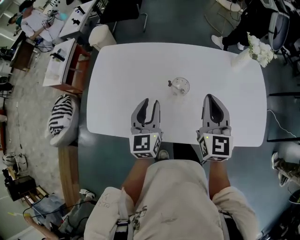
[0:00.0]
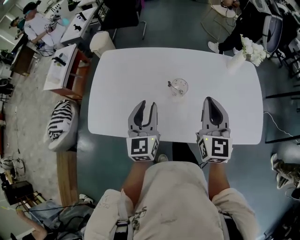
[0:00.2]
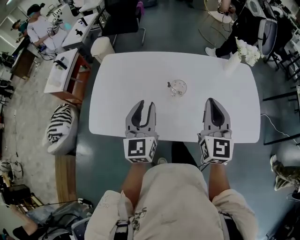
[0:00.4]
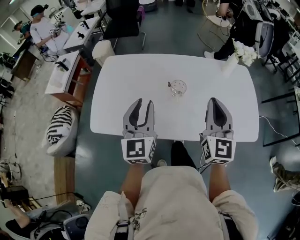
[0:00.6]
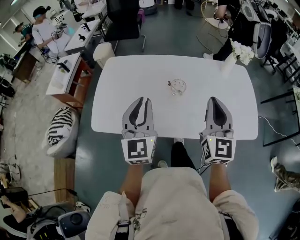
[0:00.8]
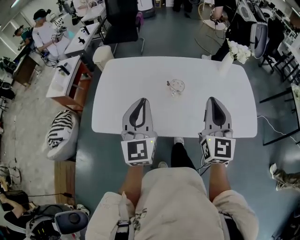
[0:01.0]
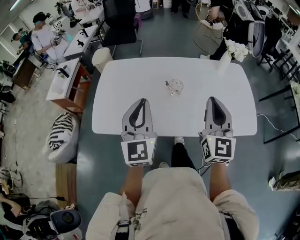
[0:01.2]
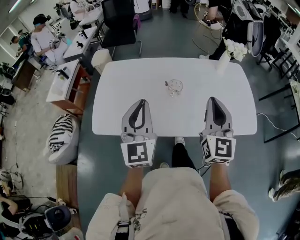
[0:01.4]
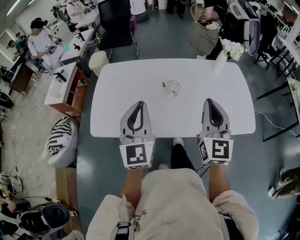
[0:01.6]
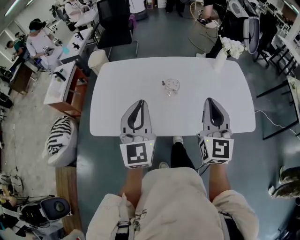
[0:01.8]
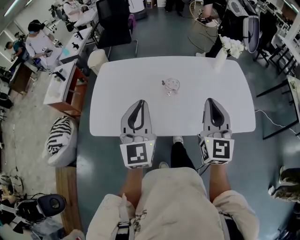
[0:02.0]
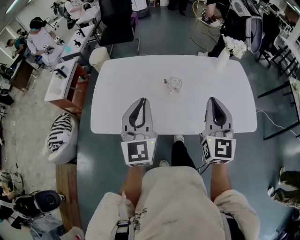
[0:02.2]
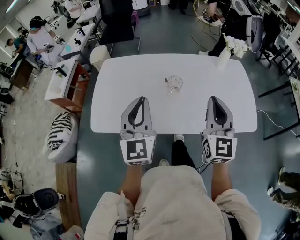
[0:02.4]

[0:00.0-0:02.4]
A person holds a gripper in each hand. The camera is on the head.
0:00.0 to 0:01.2: The left gripper travels upward and backward by some 20 cm, and closes its fingers. Meanwhile the right gripper heads backward and upward, covering about 15 cm.
0:01.2 to 0:02.4: The grippers make only small movements.

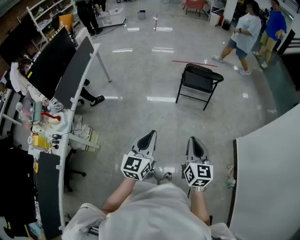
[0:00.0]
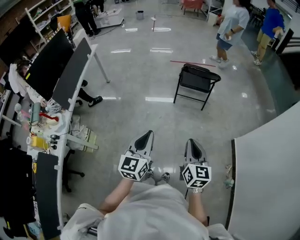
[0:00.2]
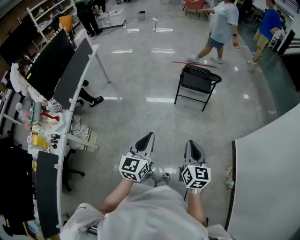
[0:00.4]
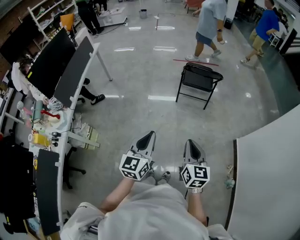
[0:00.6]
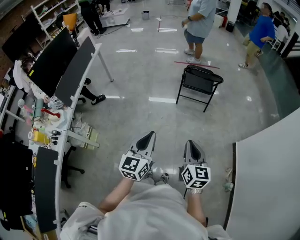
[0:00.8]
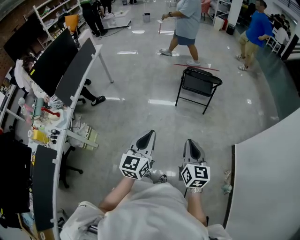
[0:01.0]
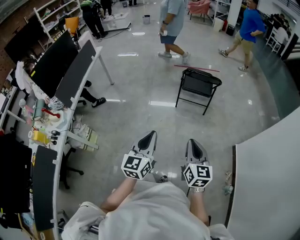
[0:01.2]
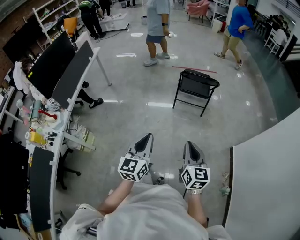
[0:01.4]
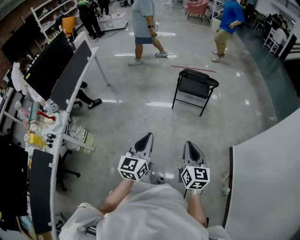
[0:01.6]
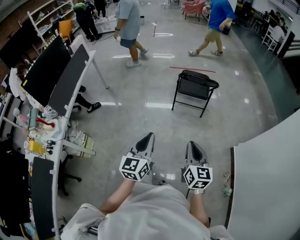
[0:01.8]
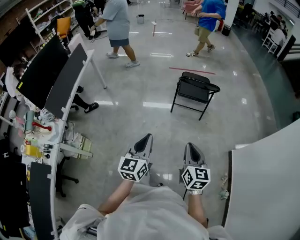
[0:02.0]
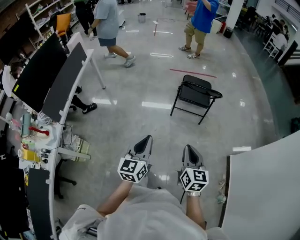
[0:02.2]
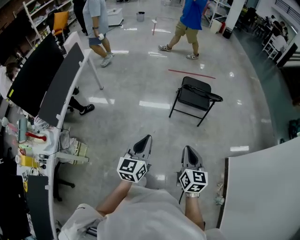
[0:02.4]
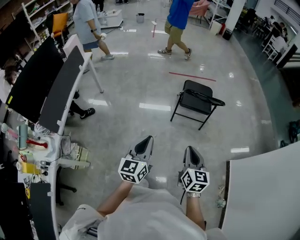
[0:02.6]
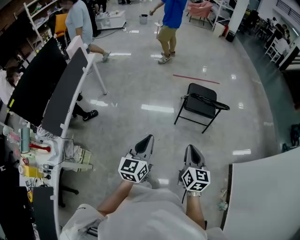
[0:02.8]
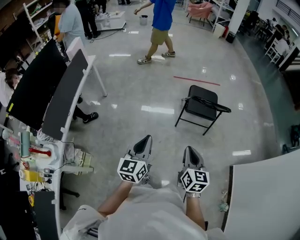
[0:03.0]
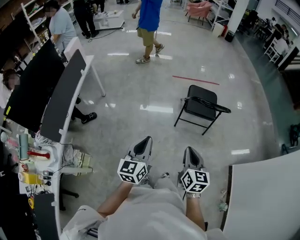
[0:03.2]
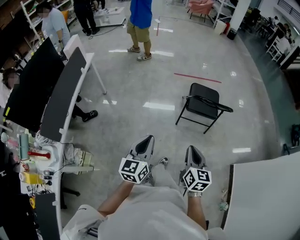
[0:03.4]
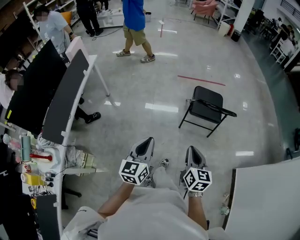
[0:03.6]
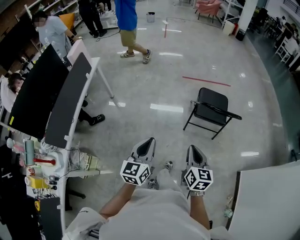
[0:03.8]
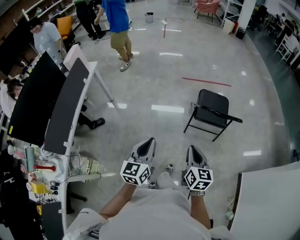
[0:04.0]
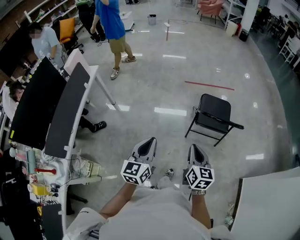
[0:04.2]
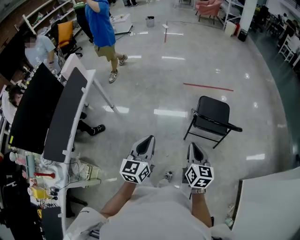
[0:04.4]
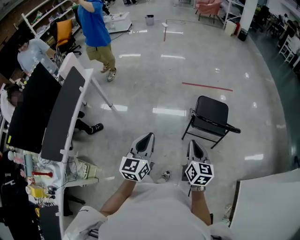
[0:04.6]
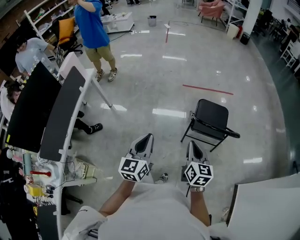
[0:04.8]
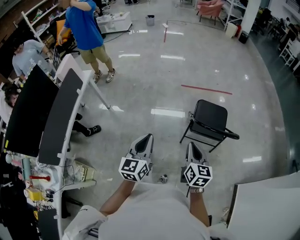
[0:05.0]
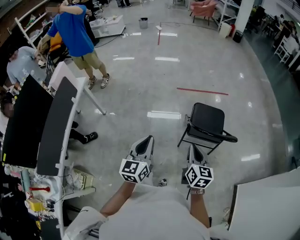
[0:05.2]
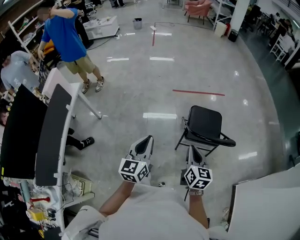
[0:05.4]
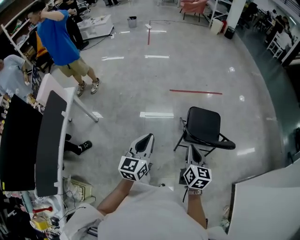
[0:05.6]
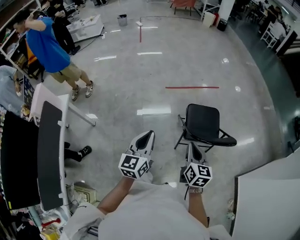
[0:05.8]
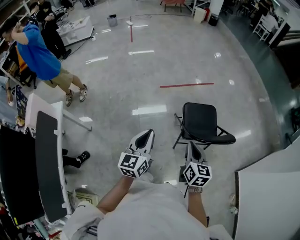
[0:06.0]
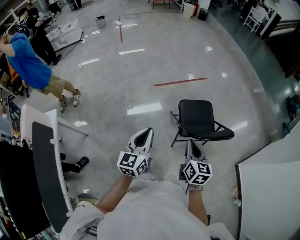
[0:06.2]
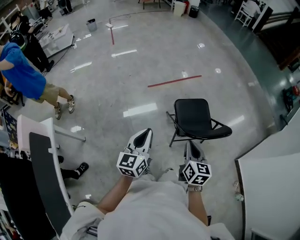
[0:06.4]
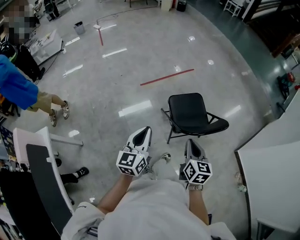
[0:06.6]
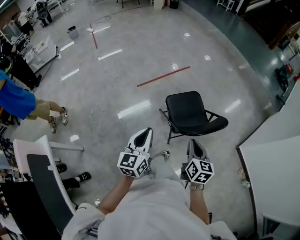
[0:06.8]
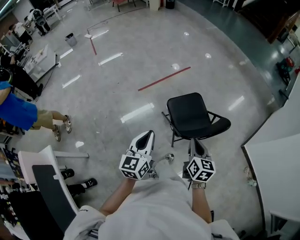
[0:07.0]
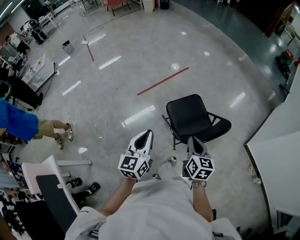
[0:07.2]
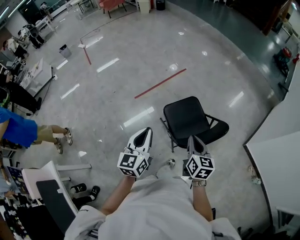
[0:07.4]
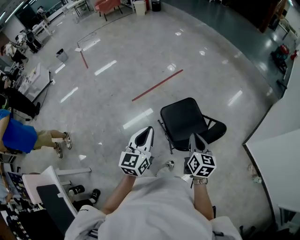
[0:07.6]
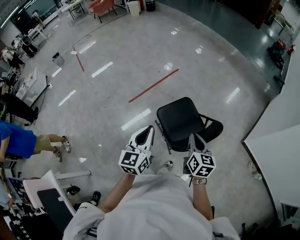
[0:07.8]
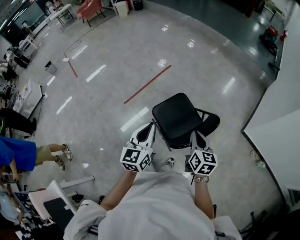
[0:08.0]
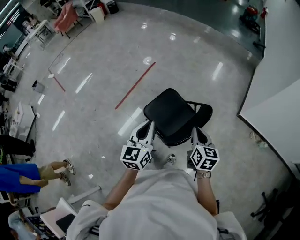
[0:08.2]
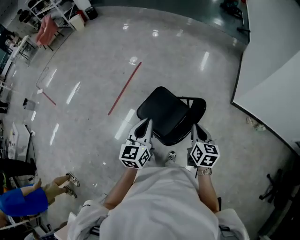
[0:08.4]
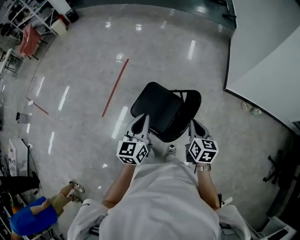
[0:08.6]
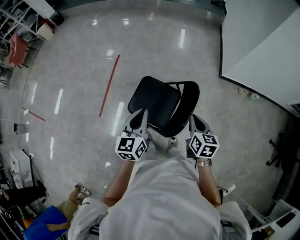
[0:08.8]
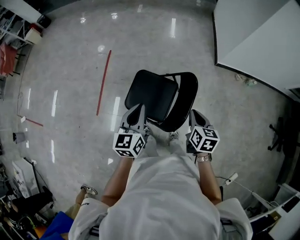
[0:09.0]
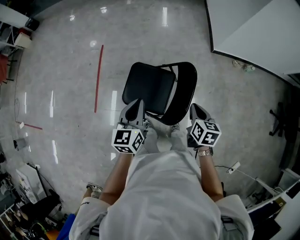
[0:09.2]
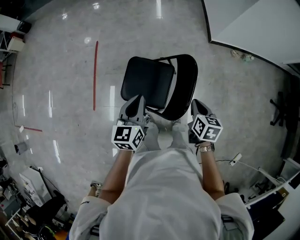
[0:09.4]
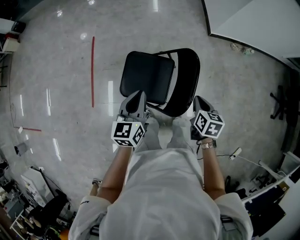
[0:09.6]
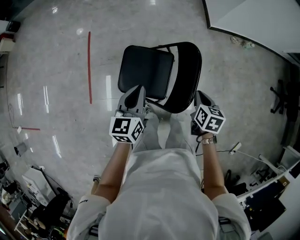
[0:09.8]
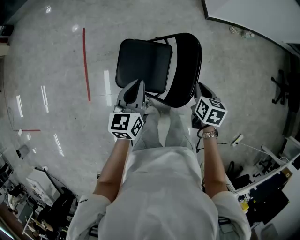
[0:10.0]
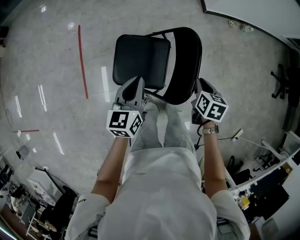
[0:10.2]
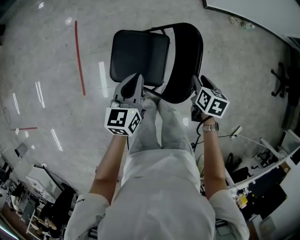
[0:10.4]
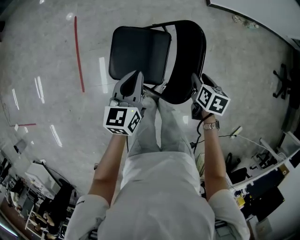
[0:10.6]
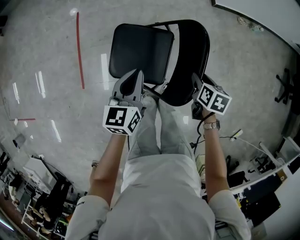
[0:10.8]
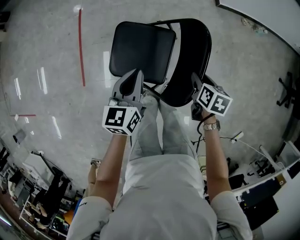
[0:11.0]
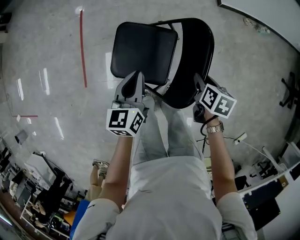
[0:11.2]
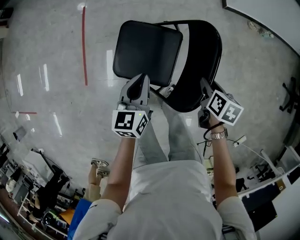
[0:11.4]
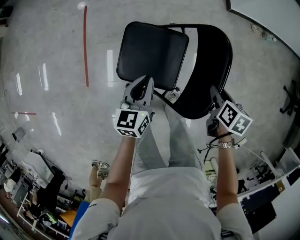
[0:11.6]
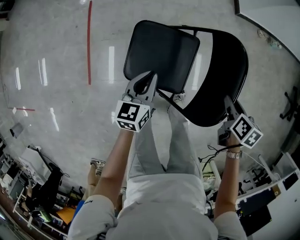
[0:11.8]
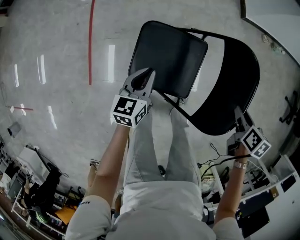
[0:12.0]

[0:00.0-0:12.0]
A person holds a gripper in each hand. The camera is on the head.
0:00.0 to 0:01.6: The two grippers go some 5 cm to the right.
0:01.6 to 0:03.0: The grippers both shift forward and to the left by approximately 30 cm.
0:03.0 to 0:04.4: The grippers both shift forward by roughly 20 cm.
0:04.4 to 0:06.0: Both grippers travel together forward, about 30 cm.
0:06.0 to 0:07.6: The grippers both shift forward and to the right by roughly 25 cm. The left gripper rotates about 20 degrees, while the right gripper rotates approximately 20 degrees.
0:07.6 to 0:09.0: The left gripper ends up approximately 25 cm from where it was, and changes its angle by some 40 degrees. Meanwhile the right gripper shifts by approximately 15 cm, and changes its angle by approximately 40 degrees.
0:09.0 to 0:10.4: The right gripper moves downward, approximately 15 cm, changes its angle by some 20 degrees, and opens; the left gripper moves downward and forward, approximately 15 cm.
0:10.4 to 0:12.0: The right gripper is displaced downward by some 5 cm; the left gripper travels downward and to the left by some 20 cm.

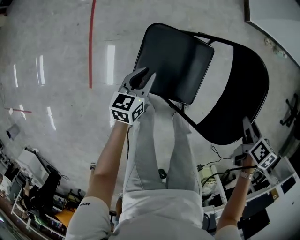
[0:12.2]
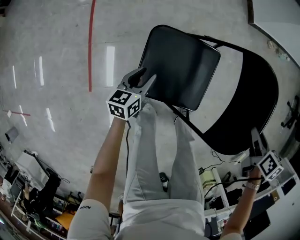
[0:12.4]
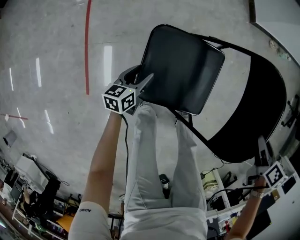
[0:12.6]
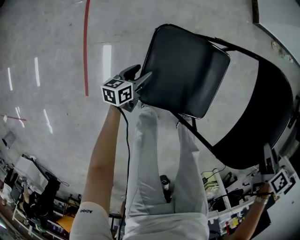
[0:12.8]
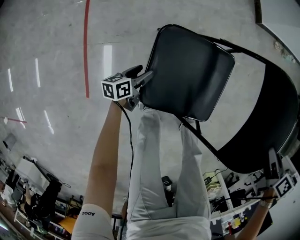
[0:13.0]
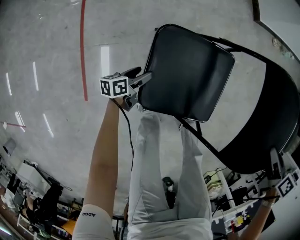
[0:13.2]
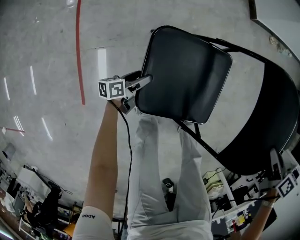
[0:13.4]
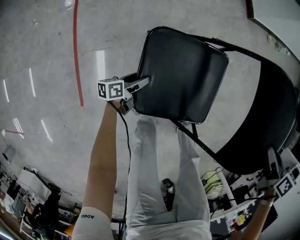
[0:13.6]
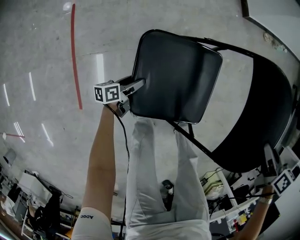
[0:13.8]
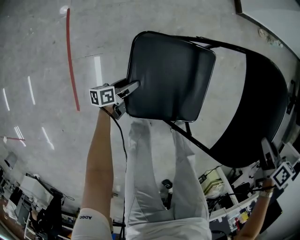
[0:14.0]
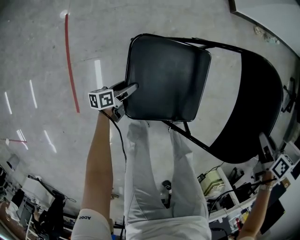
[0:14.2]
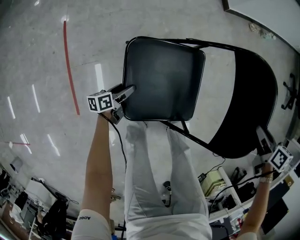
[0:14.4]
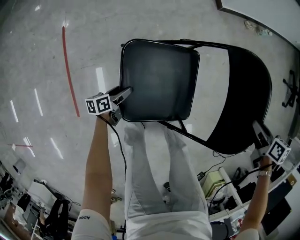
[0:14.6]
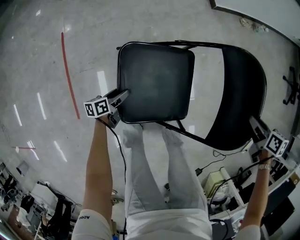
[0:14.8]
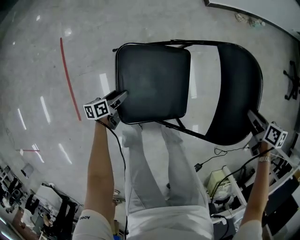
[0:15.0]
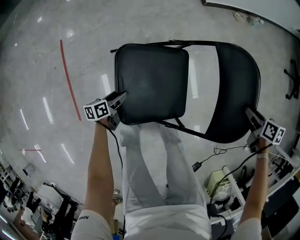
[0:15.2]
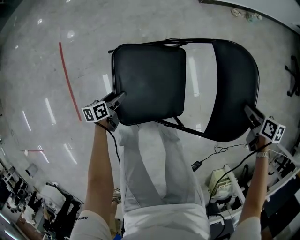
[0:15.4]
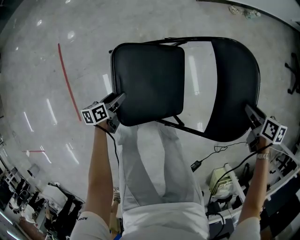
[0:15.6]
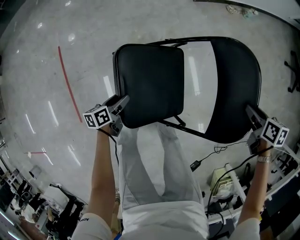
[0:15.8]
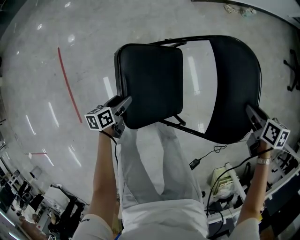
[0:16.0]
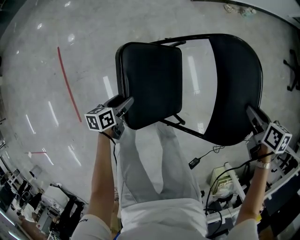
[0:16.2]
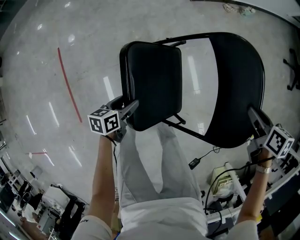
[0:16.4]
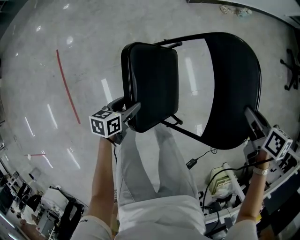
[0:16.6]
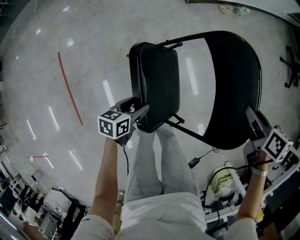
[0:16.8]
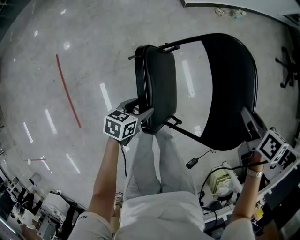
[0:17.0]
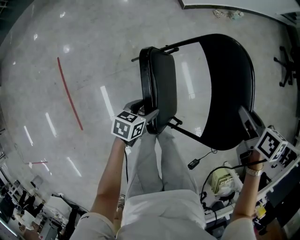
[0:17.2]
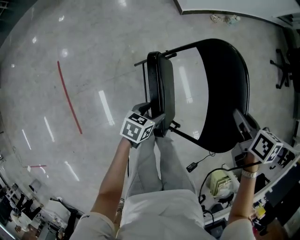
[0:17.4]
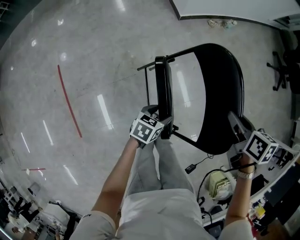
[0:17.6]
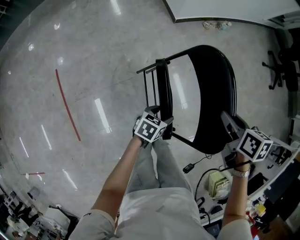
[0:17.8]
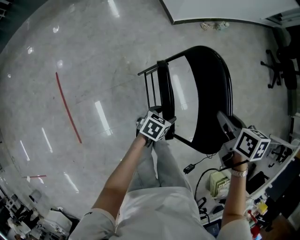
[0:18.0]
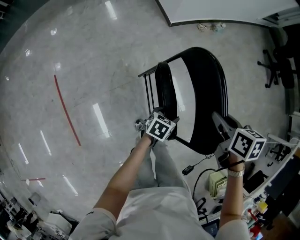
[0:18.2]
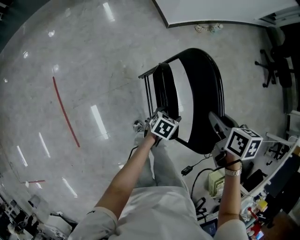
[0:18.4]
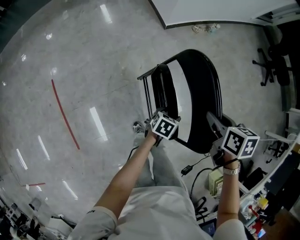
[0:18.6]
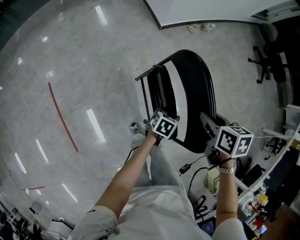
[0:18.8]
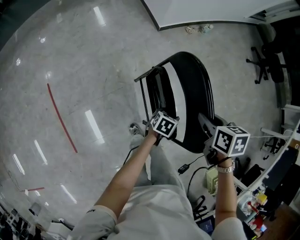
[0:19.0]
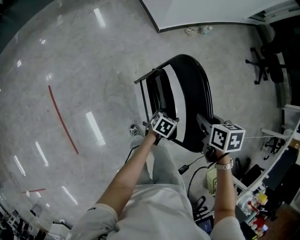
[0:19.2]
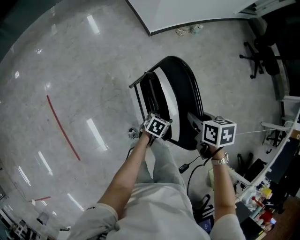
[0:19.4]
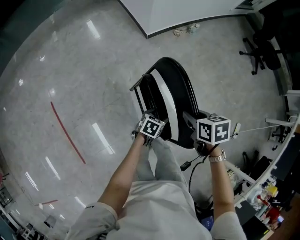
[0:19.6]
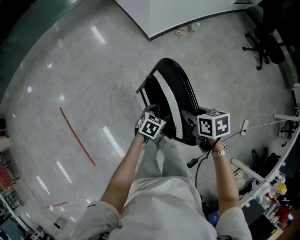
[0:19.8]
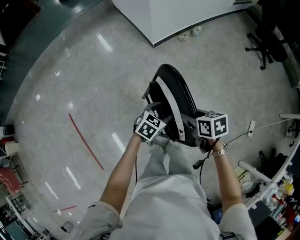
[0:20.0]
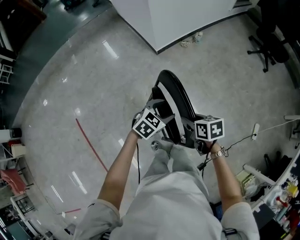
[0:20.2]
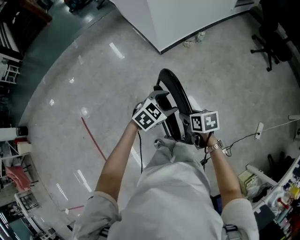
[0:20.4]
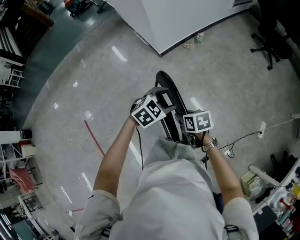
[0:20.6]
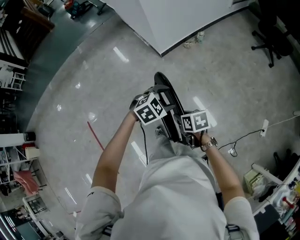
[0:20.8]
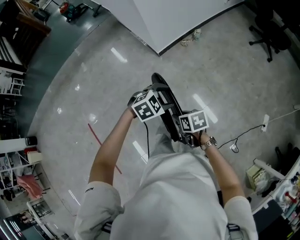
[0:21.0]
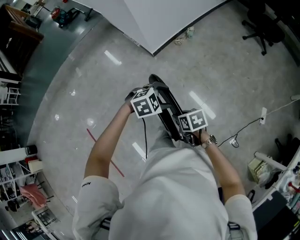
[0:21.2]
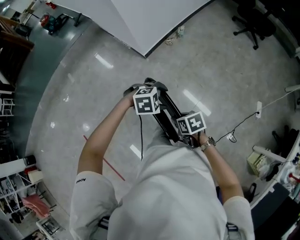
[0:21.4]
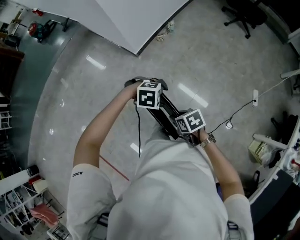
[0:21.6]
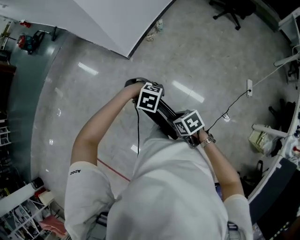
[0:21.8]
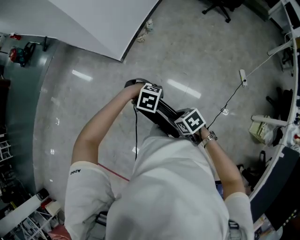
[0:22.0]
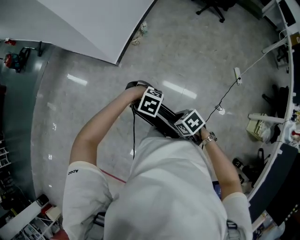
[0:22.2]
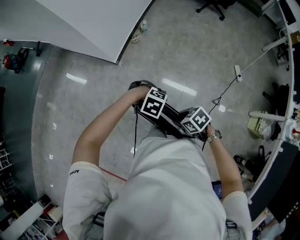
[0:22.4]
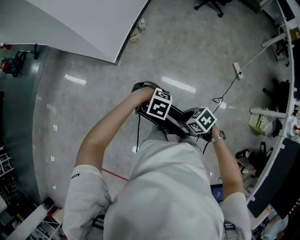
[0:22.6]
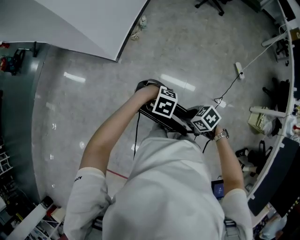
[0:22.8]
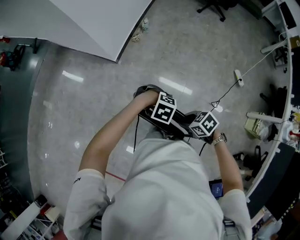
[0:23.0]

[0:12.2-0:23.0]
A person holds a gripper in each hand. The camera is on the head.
0:12.2 to 0:13.8: The left gripper heads downward, covering some 25 cm, changes its angle by some 40 degrees, and opens its fingers.
0:13.8 to 0:15.2: The right gripper is displaced to the right by some 30 cm. Meanwhile the left gripper goes approximately 25 cm to the right and upward.
0:15.2 to 0:16.8: The right gripper goes some 15 cm upward, while the left gripper is displaced upward and to the right by roughly 25 cm, and swivels about 30 degrees.
0:16.8 to 0:18.4: The right gripper goes some 15 cm upward, to the left and backward. Meanwhile the left gripper goes about 15 cm to the right, and turns by some 20 degrees.
0:18.4 to 0:20.0: The left gripper moves upward and forward, about 15 cm, and changes its angle by approximately 30 degrees.
0:20.0 to 0:21.4: The left gripper goes approximately 10 cm upward, and rotates around the line of its fingers by about 50 degrees, clockwise from behind.
0:21.4 to 0:23.0: The left gripper moves downward, roughly 5 cm, swivels about 40 degrees, and closes.
